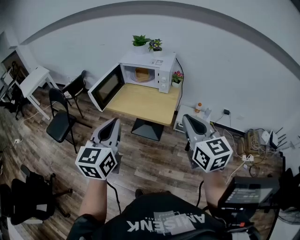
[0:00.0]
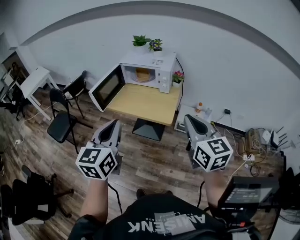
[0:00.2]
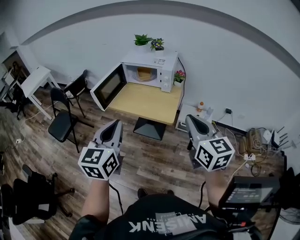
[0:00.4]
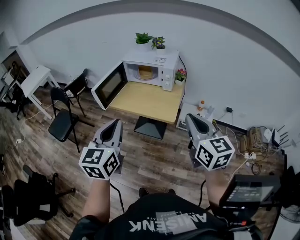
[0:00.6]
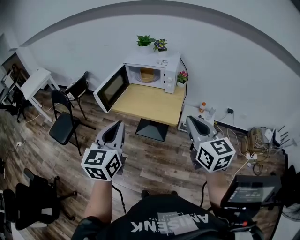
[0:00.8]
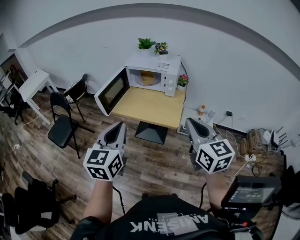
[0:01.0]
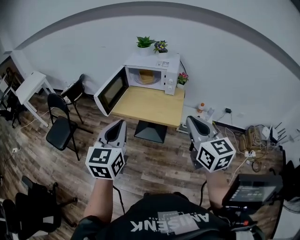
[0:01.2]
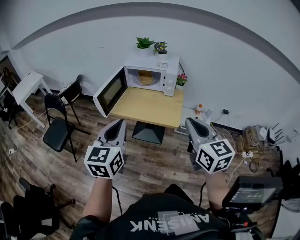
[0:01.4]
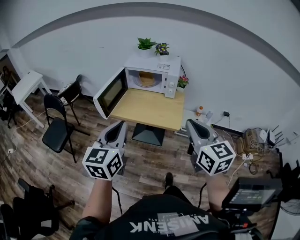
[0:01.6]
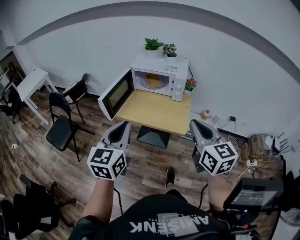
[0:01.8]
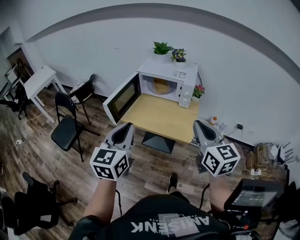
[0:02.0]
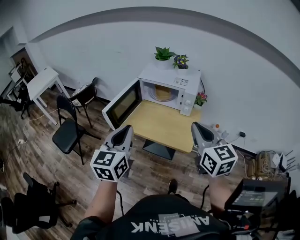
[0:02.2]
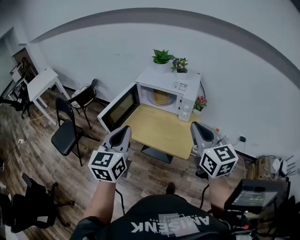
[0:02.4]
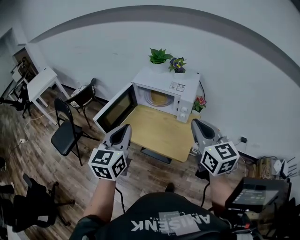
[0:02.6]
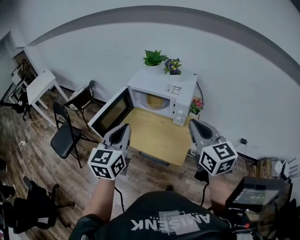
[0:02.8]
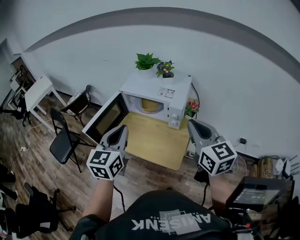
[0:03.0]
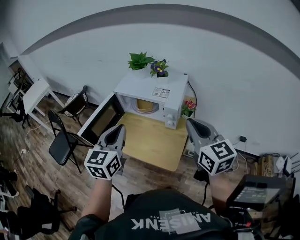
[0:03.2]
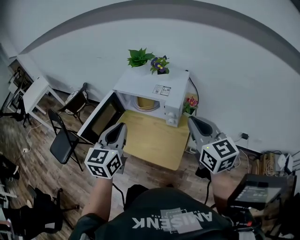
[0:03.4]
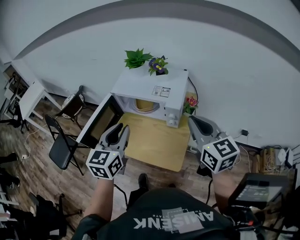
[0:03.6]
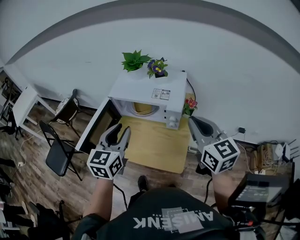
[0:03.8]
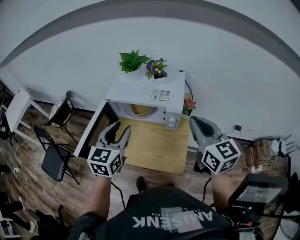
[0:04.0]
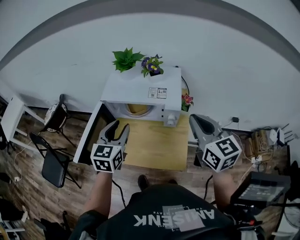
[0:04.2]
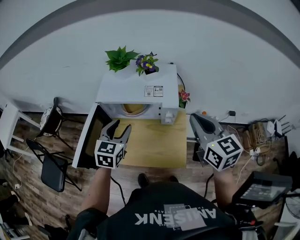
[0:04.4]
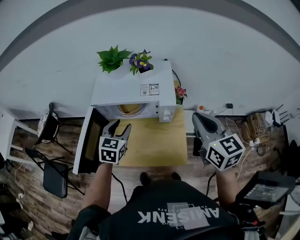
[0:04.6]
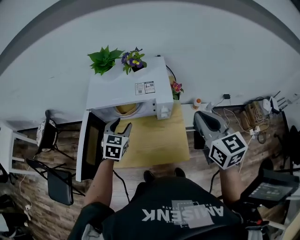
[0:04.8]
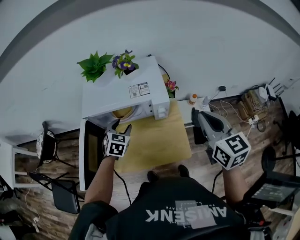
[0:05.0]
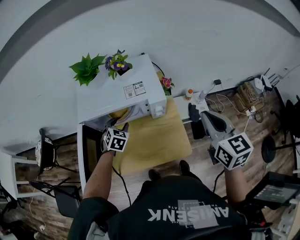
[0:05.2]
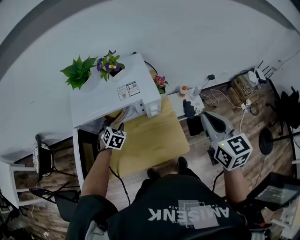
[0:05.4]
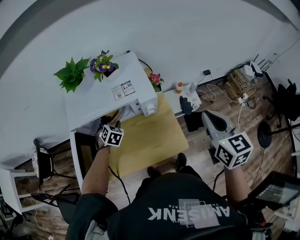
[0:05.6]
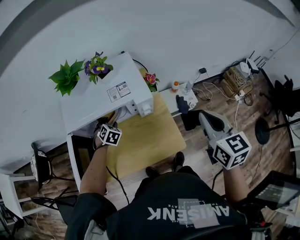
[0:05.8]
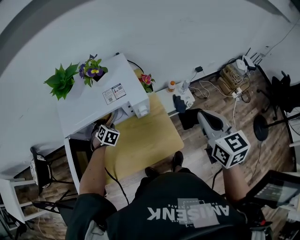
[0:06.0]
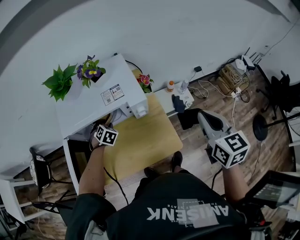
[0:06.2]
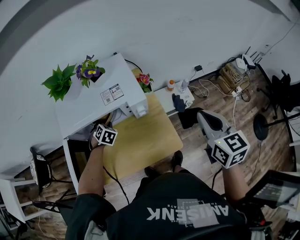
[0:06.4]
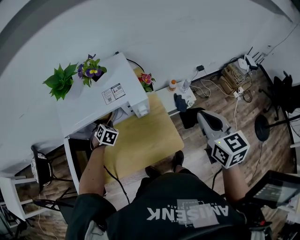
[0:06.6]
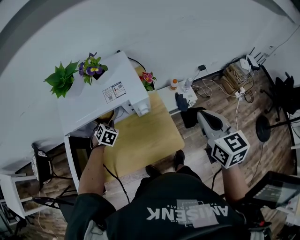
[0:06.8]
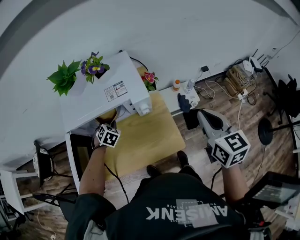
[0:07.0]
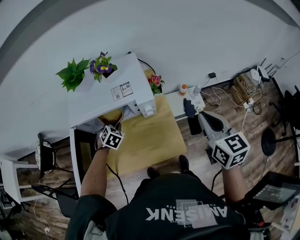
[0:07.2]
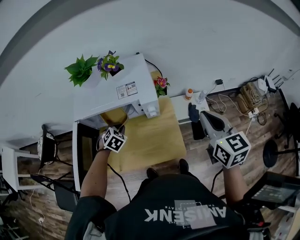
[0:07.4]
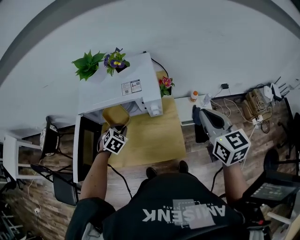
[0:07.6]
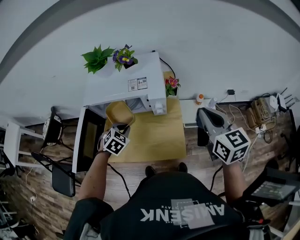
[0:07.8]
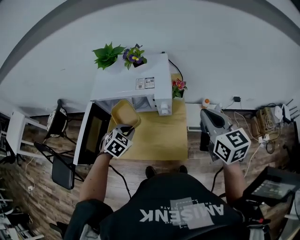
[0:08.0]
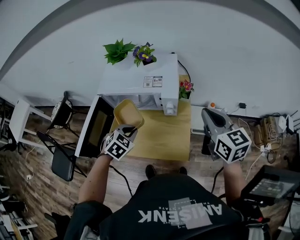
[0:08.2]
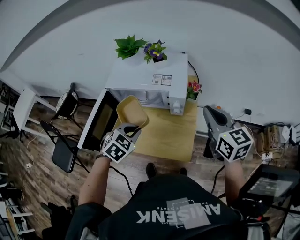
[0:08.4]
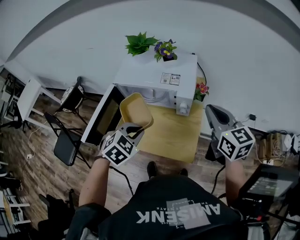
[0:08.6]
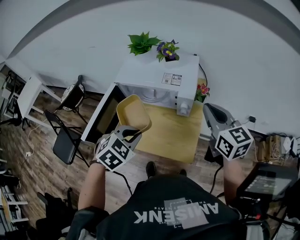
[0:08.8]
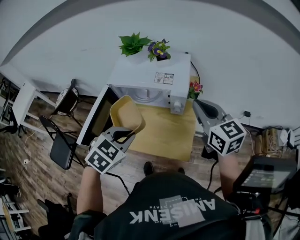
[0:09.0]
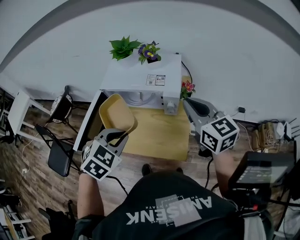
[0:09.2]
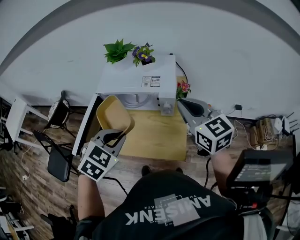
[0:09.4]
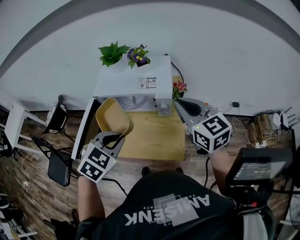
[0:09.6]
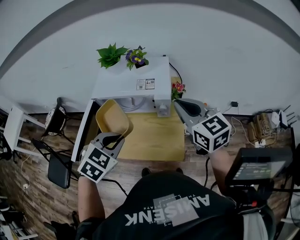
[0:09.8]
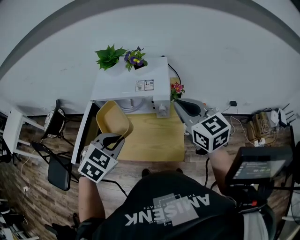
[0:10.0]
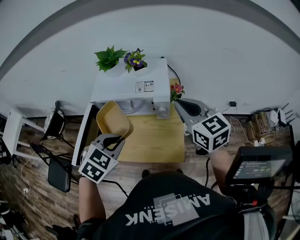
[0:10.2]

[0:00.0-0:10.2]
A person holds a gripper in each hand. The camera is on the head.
0:00.0 to 0:01.4: The two grippers go about 10 cm to the left.
0:01.4 to 0:03.0: Both grippers travel together forward and to the right, about 30 cm.
0:03.0 to 0:04.4: The right gripper heads forward, covering approximately 10 cm. Meanwhile the left gripper is displaced forward and downward by about 20 cm, changes its angle by roughly 30 degrees, and opens.
0:04.4 to 0:05.8: The left gripper shifts approximately 25 cm downward and forward, and swivels approximately 50 degrees; the right gripper heads to the right and downward, covering about 10 cm, and swivels roughly 30 degrees.
0:05.8 to 0:07.2: The left gripper moves about 5 cm, and closes up.
0:07.2 to 0:08.8: The right gripper moves to the left and forward, roughly 10 cm, and turns by some 30 degrees; the left gripper is displaced backward and upward by about 30 cm.
0:08.8 to 0:10.2: The grippers make only small movements.

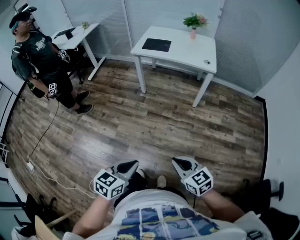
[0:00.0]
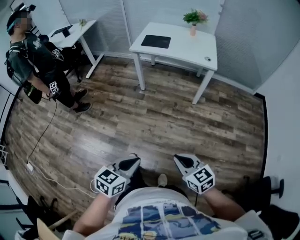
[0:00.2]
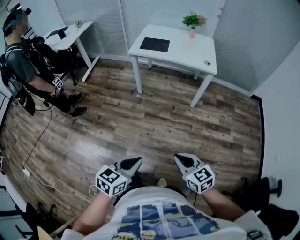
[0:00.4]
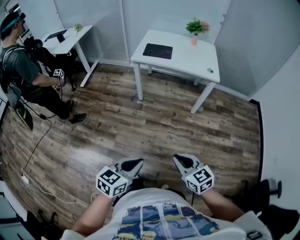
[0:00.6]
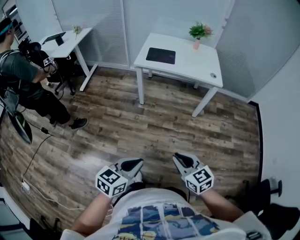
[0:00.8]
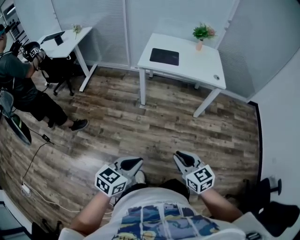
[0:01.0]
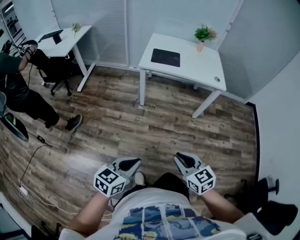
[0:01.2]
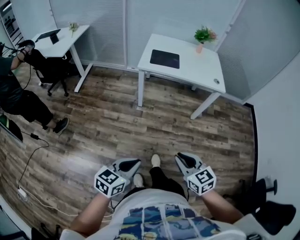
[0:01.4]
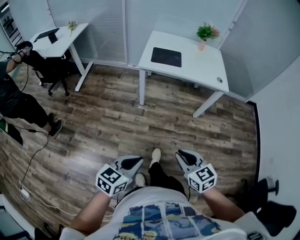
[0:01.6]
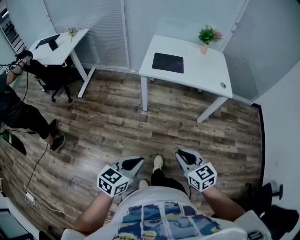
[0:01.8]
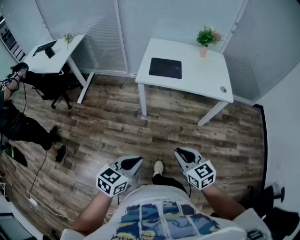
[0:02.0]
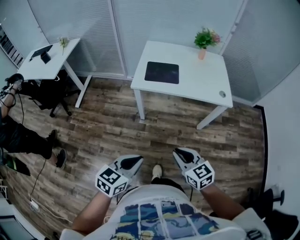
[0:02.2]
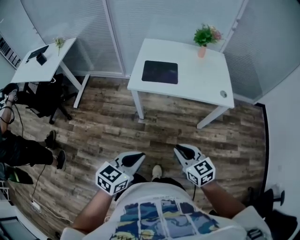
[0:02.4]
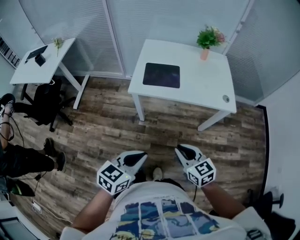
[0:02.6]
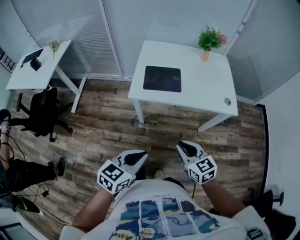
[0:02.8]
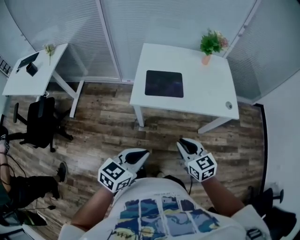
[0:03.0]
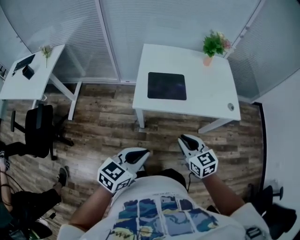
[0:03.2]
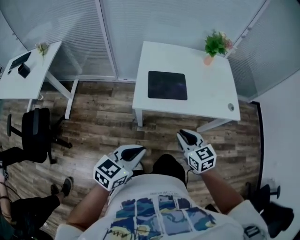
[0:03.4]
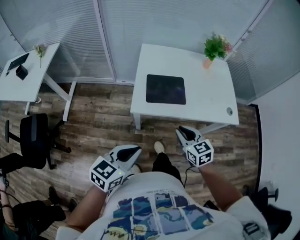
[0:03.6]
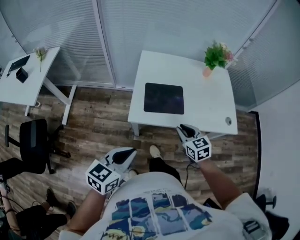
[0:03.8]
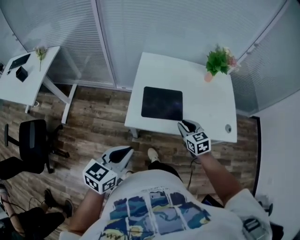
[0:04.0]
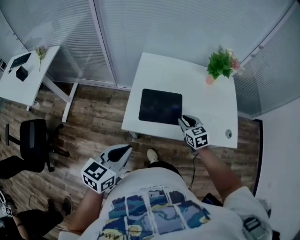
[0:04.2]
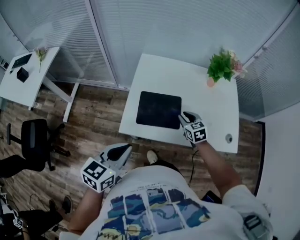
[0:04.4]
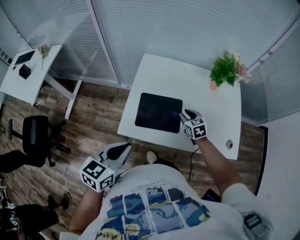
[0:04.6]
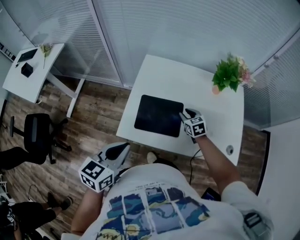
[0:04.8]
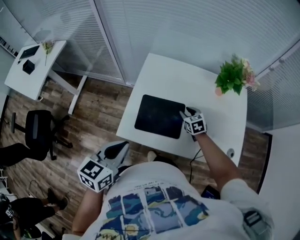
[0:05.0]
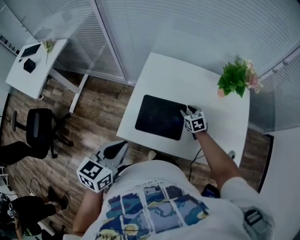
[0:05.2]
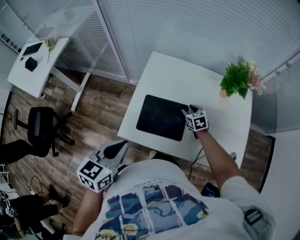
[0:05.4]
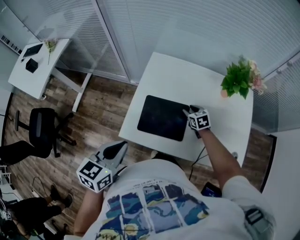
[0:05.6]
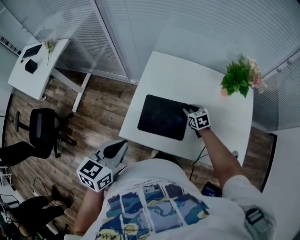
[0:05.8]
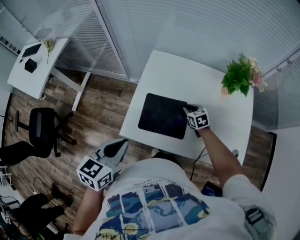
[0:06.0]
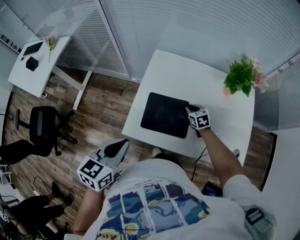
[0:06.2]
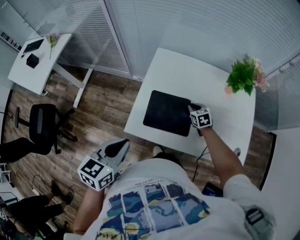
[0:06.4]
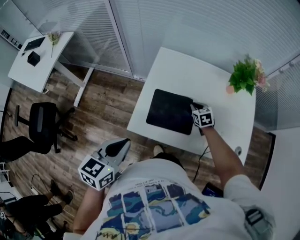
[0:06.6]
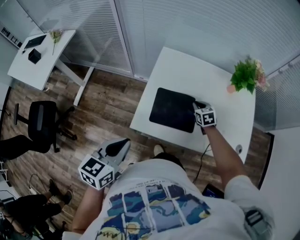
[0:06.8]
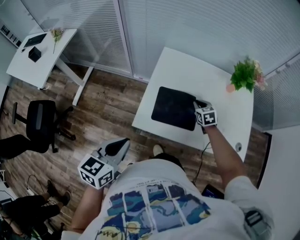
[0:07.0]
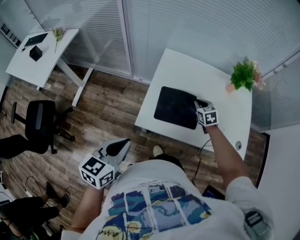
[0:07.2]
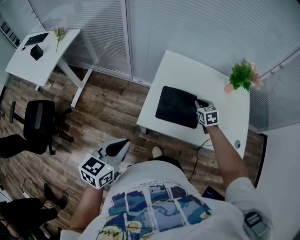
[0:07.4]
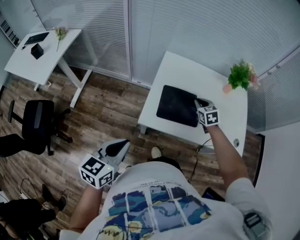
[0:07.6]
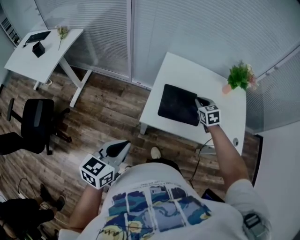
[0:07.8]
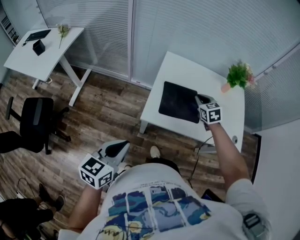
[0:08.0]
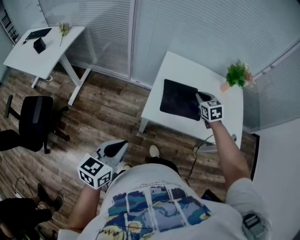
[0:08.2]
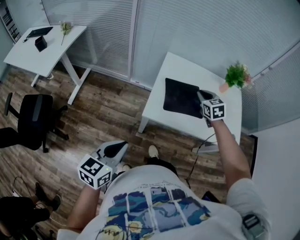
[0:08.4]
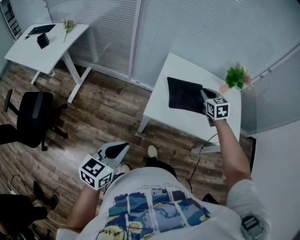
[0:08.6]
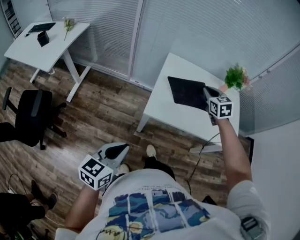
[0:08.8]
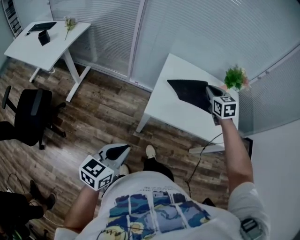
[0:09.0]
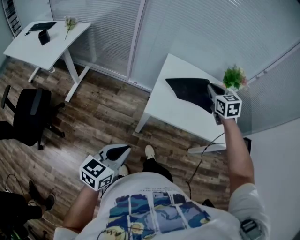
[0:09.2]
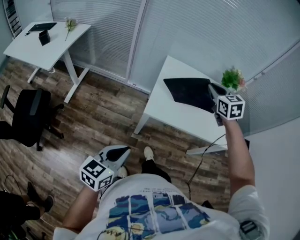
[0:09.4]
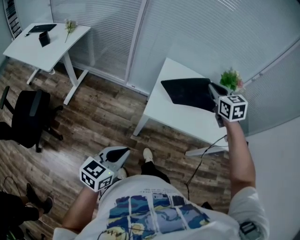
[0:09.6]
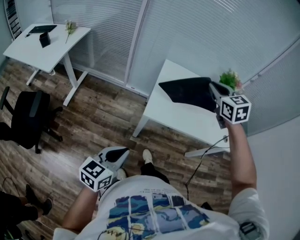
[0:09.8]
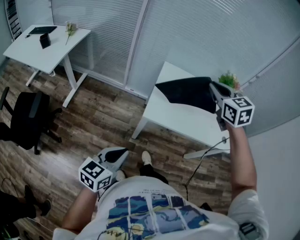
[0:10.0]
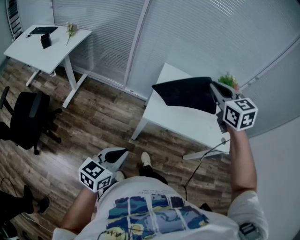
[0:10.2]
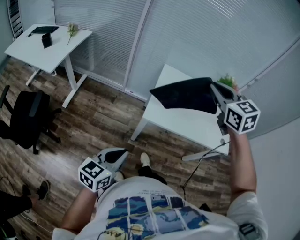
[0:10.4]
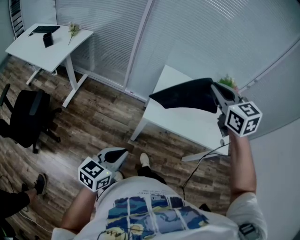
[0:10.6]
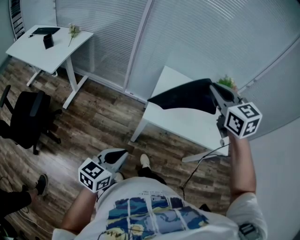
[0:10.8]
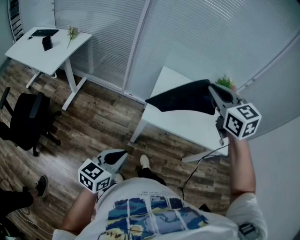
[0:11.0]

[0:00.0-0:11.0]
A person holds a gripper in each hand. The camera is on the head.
0:00.0 to 0:01.6: The two grippers go about 35 cm to the left and forward.
0:01.6 to 0:03.2: Both grippers are carried forward, roughly 40 cm.
0:03.2 to 0:04.8: The right gripper travels forward by roughly 40 cm. Meanwhile the left gripper shifts approximately 25 cm forward, and rotates roughly 20 degrees.
0:04.8 to 0:06.2: The right gripper changes place by some 5 cm.
0:06.2 to 0:07.8: The right gripper shifts about 20 cm upward, backward and to the left. Meanwhile the left gripper heads backward and to the left, covering roughly 20 cm.
0:07.8 to 0:09.4: The right gripper shifts about 25 cm upward and backward. Meanwhile the left gripper is displaced backward by about 15 cm.
0:09.4 to 0:11.0: The right gripper is displaced upward, backward and to the left by some 25 cm.

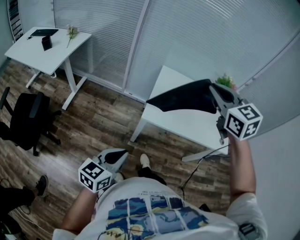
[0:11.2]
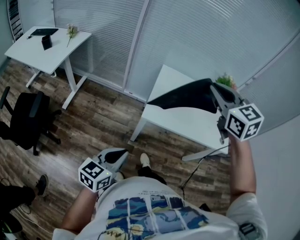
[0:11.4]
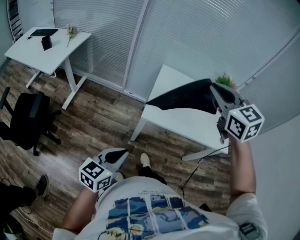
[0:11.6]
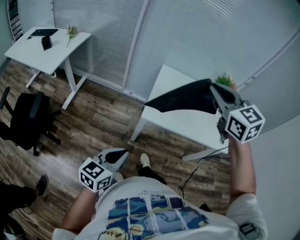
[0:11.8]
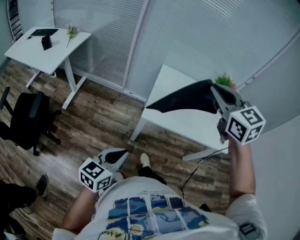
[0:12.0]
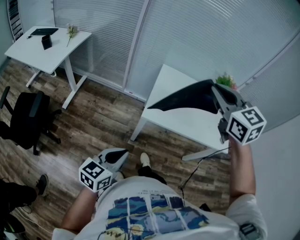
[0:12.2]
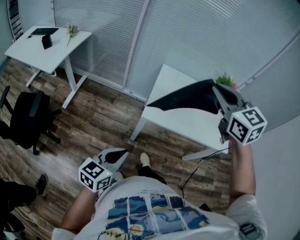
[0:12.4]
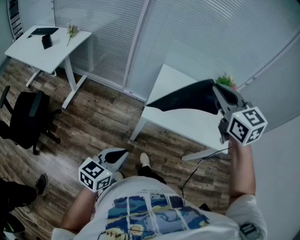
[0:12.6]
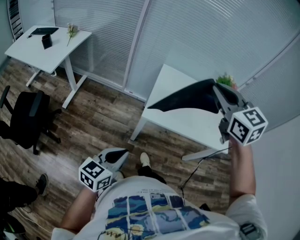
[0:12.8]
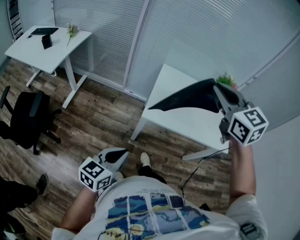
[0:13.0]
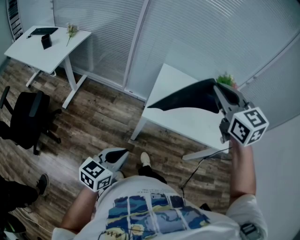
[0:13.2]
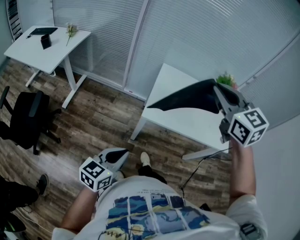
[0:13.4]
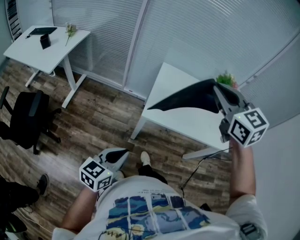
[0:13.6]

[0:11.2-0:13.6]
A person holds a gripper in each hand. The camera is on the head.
0:11.2 to 0:12.4: The grippers move only a little.
0:12.4 to 0:13.6: Neither gripper changes place.
